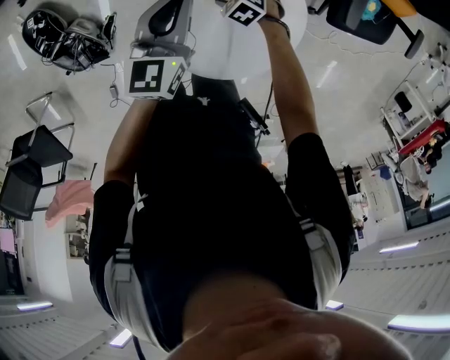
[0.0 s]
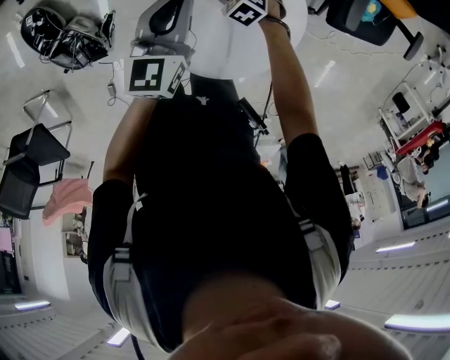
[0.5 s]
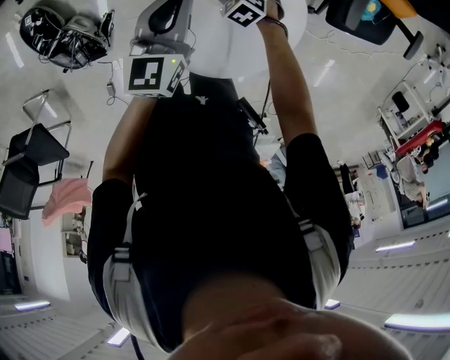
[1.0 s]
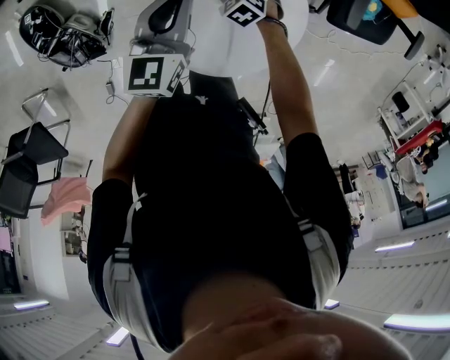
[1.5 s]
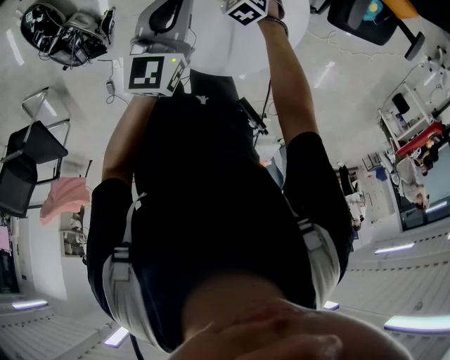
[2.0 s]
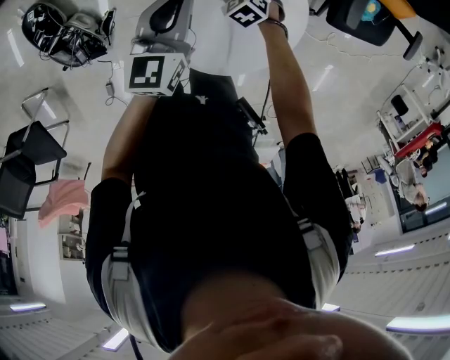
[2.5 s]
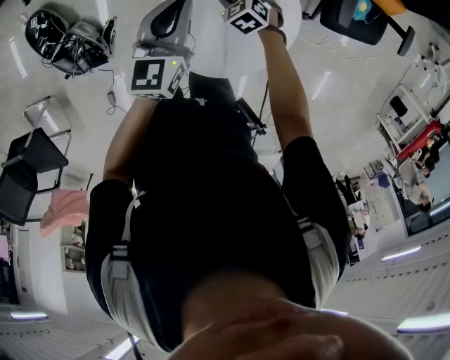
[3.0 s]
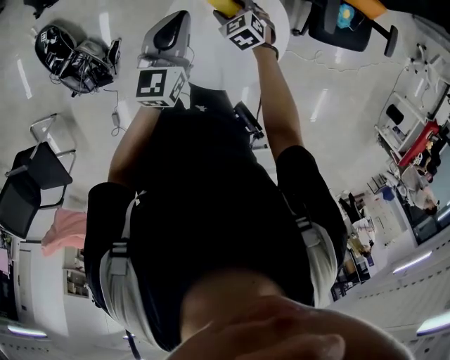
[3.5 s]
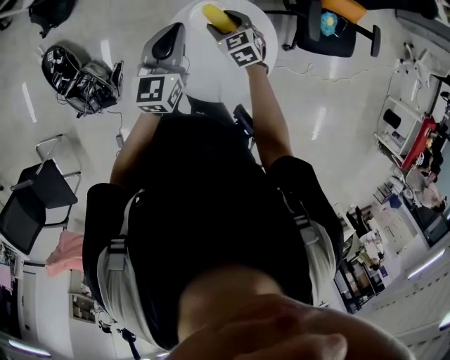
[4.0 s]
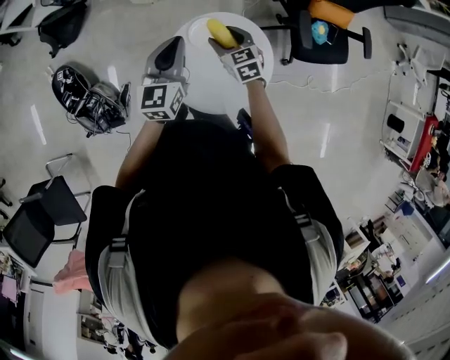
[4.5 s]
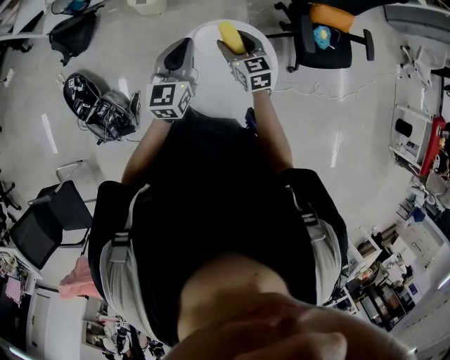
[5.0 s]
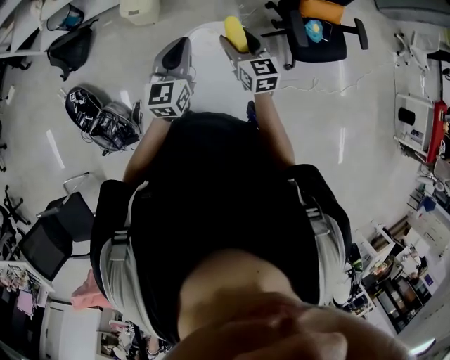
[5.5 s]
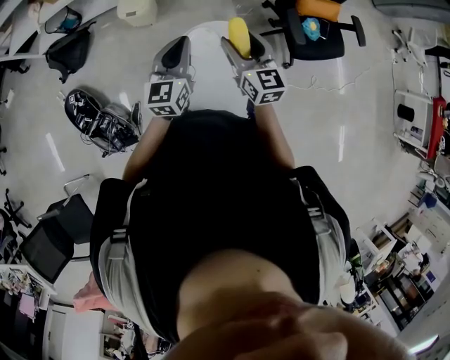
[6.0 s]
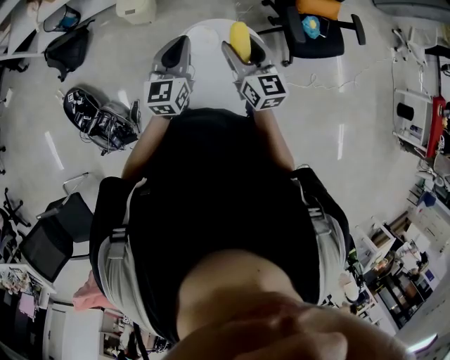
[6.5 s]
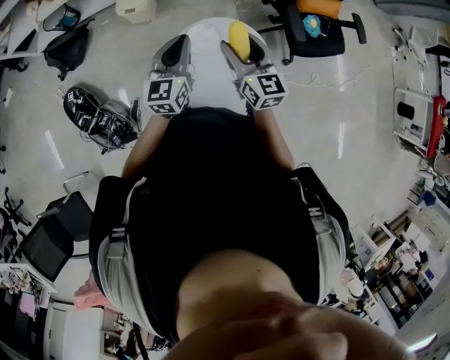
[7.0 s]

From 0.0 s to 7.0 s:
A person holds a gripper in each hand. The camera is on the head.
From 0.0 s to 2.0 s: The grippers move only a little.
From 2.0 s to 3.5 s: The right gripper moves upward, approximately 10 cm. The left gripper moves upward, roughly 5 cm.
From 3.5 s to 5.0 s: The right gripper goes roughly 20 cm upward, and swivels about 40 degrees. The left gripper goes approximately 10 cm upward.
From 5.0 s to 7.0 s: The right gripper shifts approximately 10 cm upward, and turns by approximately 20 degrees.

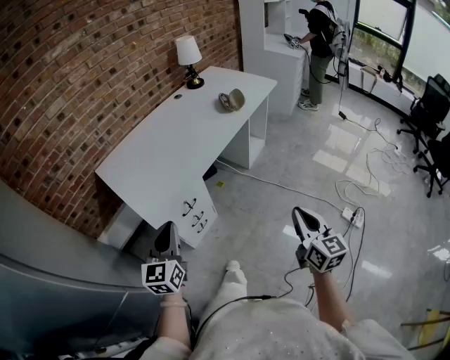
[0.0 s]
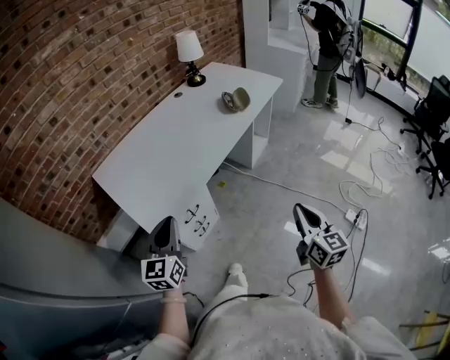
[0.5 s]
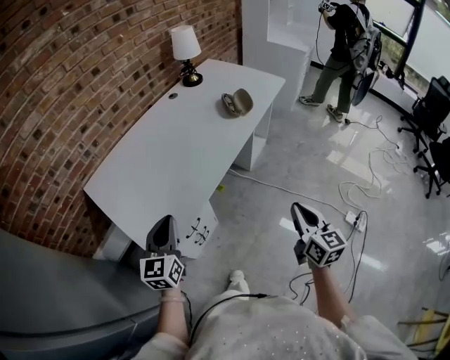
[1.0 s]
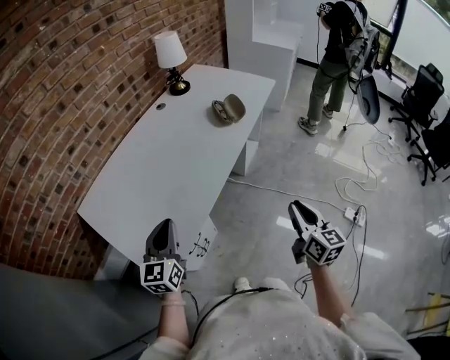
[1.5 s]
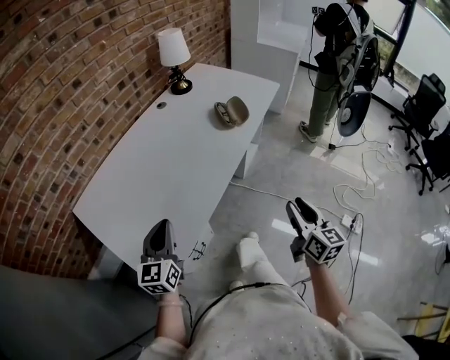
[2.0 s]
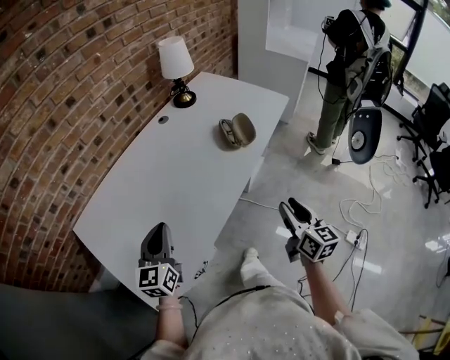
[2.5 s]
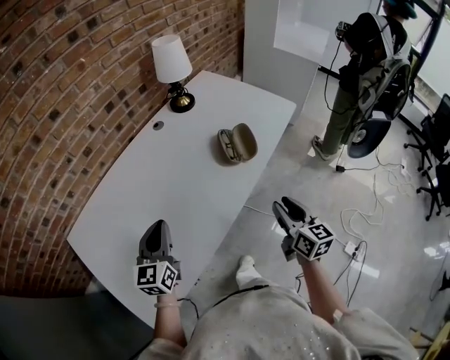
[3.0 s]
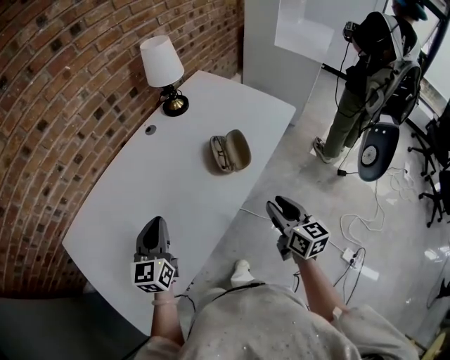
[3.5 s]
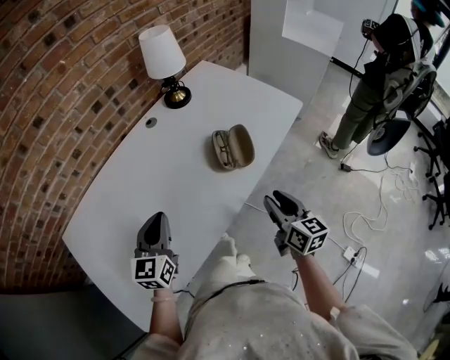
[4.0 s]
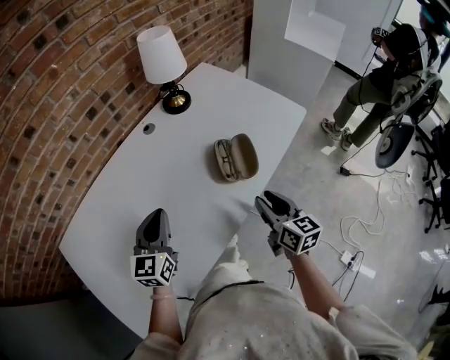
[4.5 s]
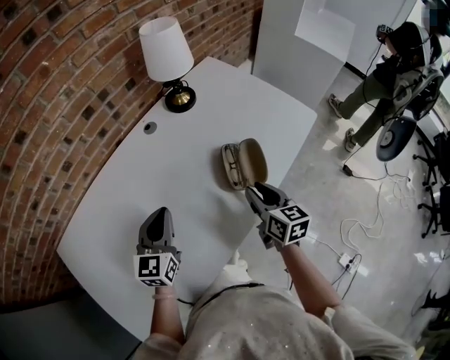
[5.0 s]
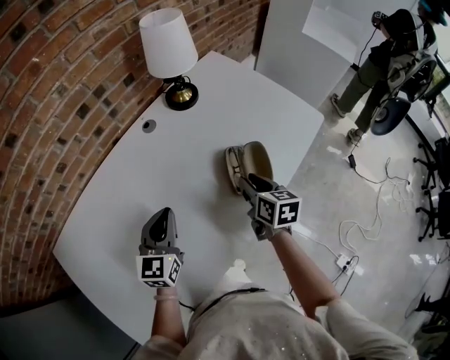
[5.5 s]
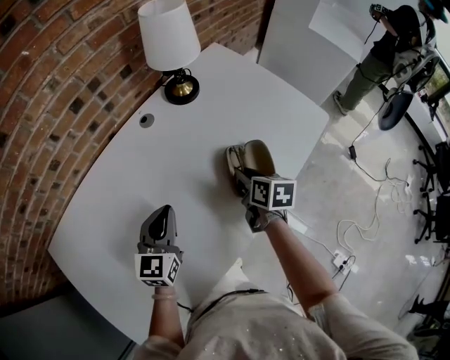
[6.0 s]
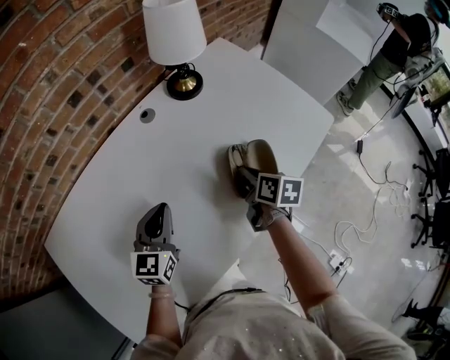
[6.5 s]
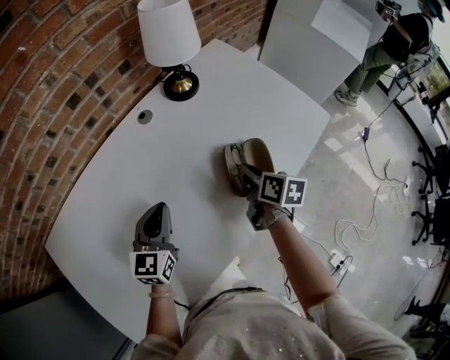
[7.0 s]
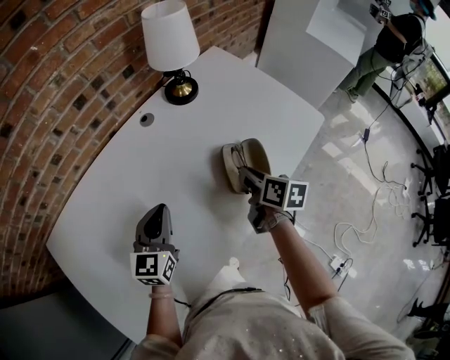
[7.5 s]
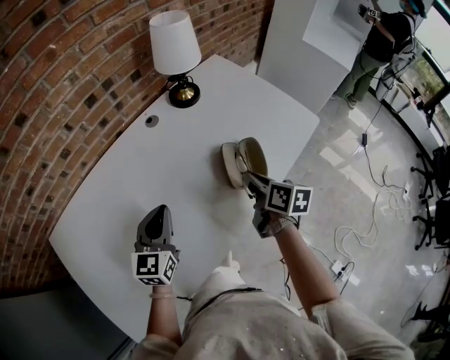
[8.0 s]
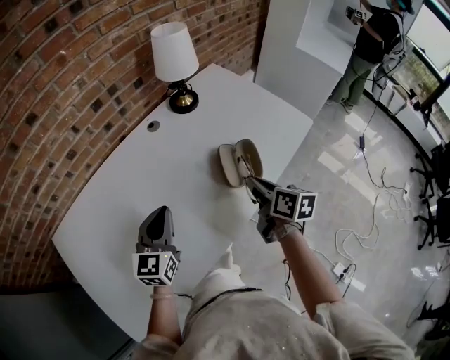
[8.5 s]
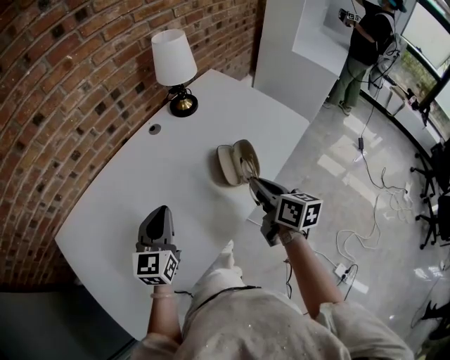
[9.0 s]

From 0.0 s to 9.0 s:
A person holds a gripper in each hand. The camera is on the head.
From 0.0 s to 2.0 s: The grippers both shift forward by about 25 cm. The right gripper opens its fingers.
From 2.0 s to 4.5 s: The two grippers go some 30 cm forward. The right gripper turns by some 20 degrees.
From 4.5 s to 7.0 s: The left gripper moves forward and downward, approximately 10 cm; the right gripper travels forward and downward by about 20 cm, changes its angle by roughly 30 degrees, and closes up.
From 7.0 s to 9.0 s: The left gripper travels backward and upward by roughly 10 cm; the right gripper goes approximately 15 cm backward and upward.

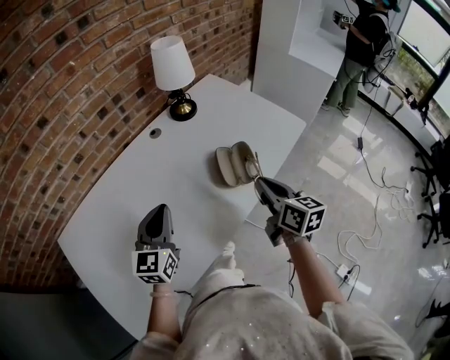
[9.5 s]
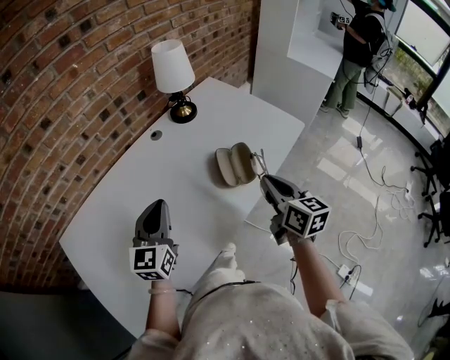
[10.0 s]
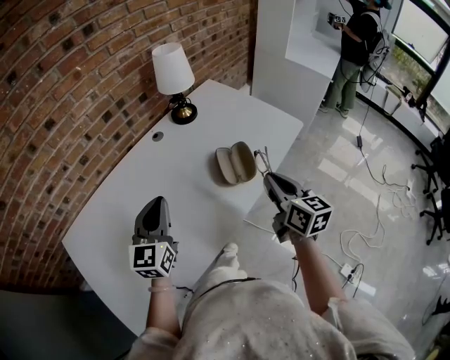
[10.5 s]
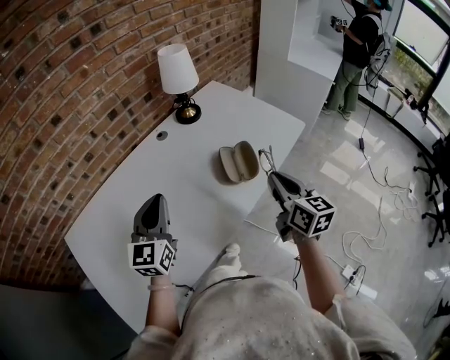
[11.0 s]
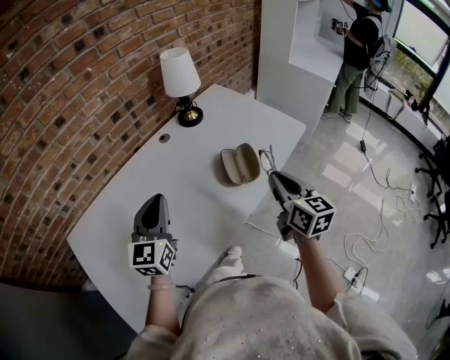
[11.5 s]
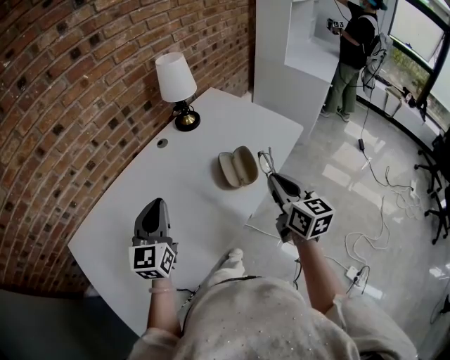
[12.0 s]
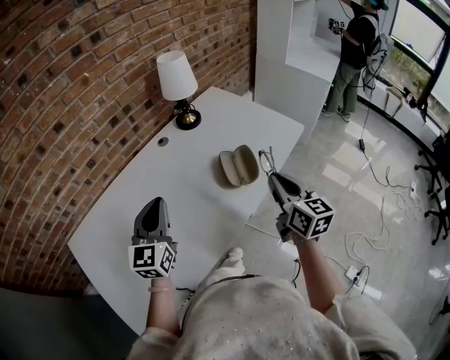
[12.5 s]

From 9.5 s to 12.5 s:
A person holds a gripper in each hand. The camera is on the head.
From 9.5 s to 11.0 s: The right gripper ends up roughly 5 cm from where it was. Meanwhile the left gripper ends up some 5 cm from where it was.
From 11.0 s to 12.5 s: Both grippers stay about where they are.

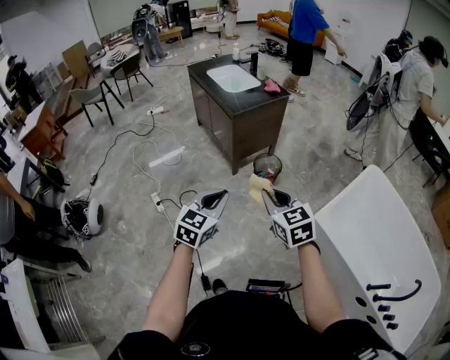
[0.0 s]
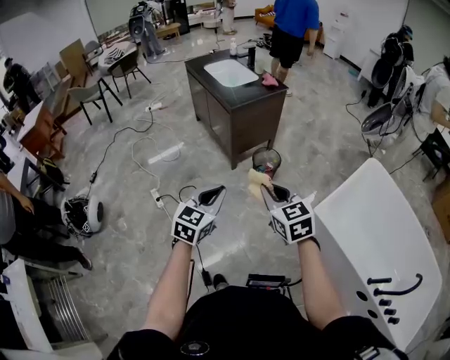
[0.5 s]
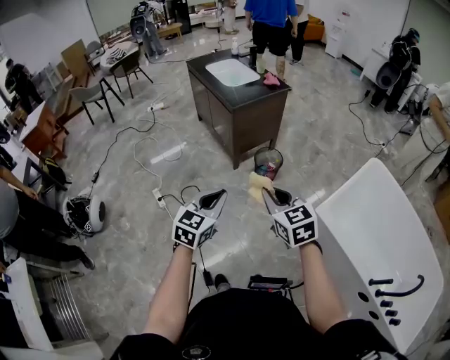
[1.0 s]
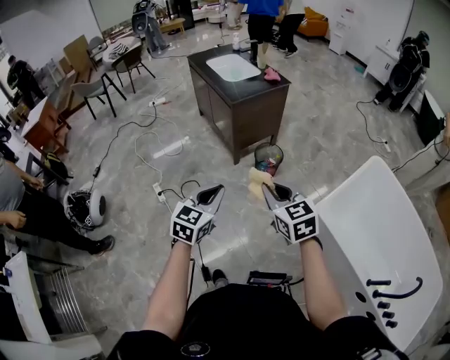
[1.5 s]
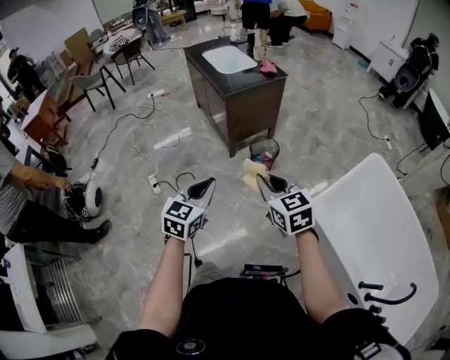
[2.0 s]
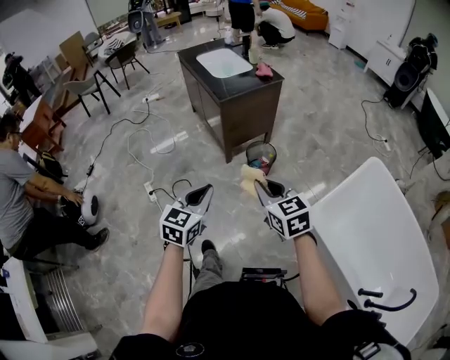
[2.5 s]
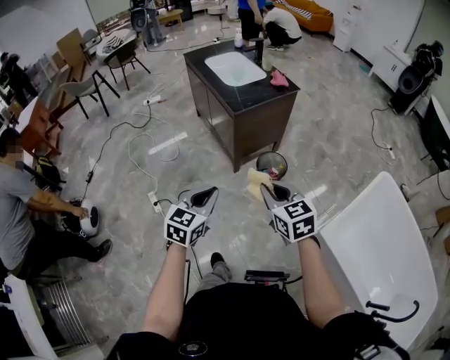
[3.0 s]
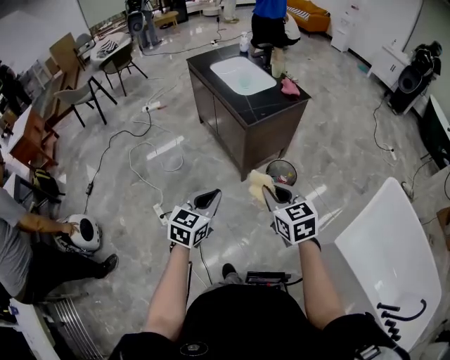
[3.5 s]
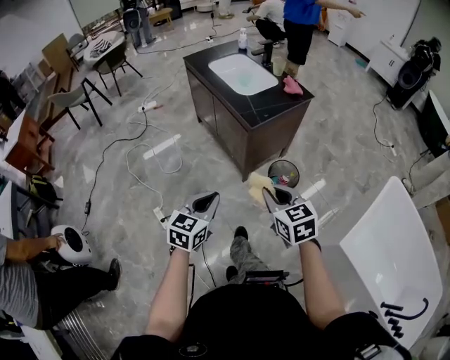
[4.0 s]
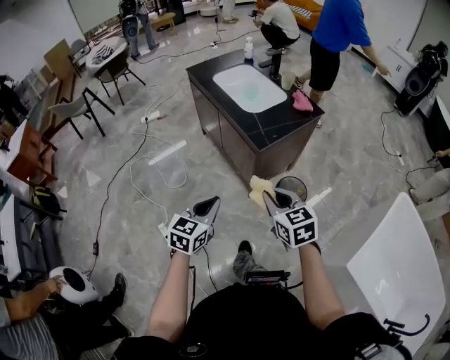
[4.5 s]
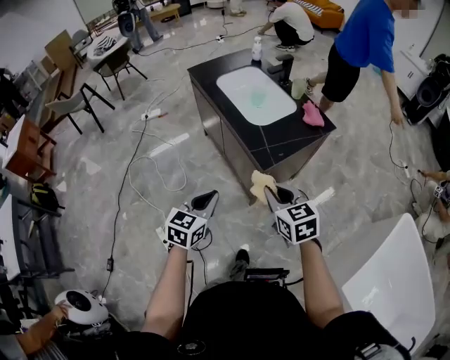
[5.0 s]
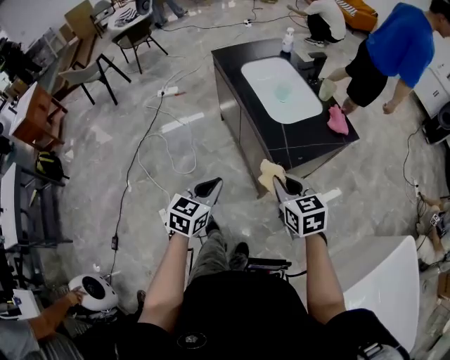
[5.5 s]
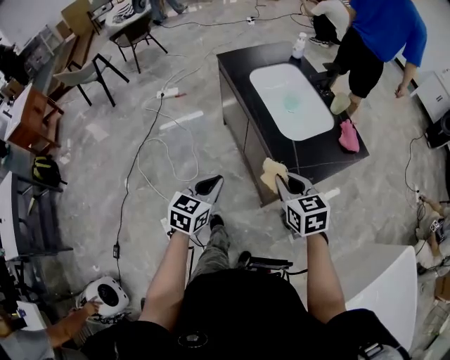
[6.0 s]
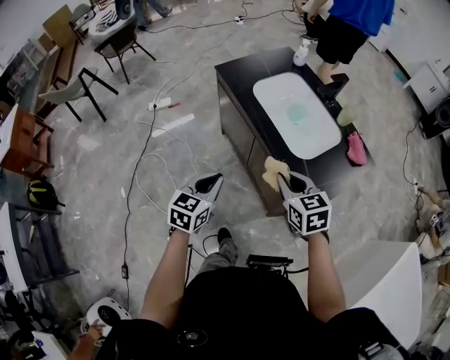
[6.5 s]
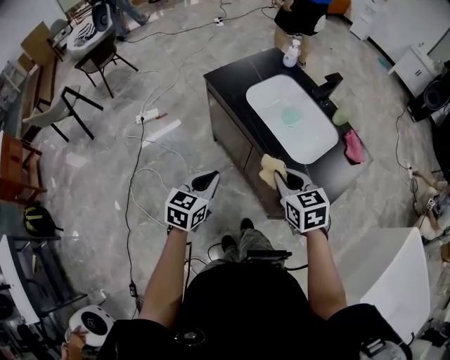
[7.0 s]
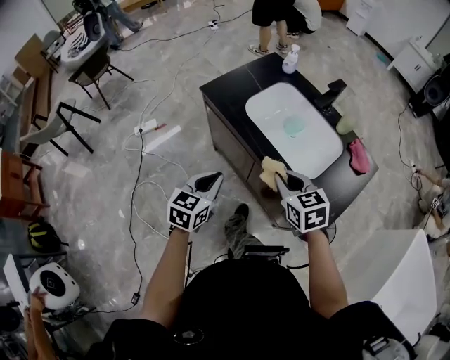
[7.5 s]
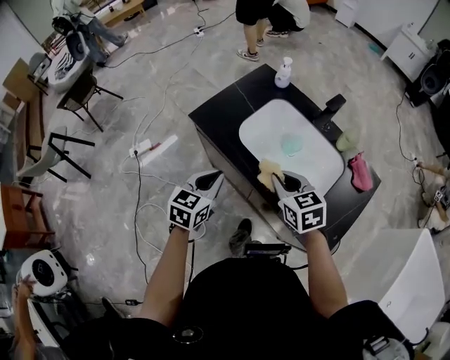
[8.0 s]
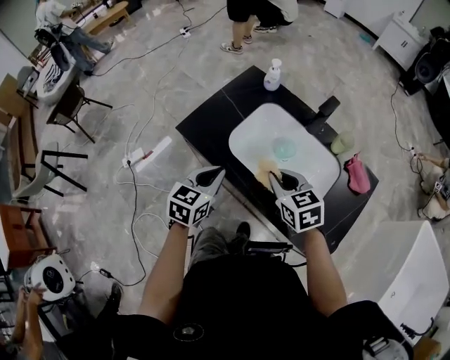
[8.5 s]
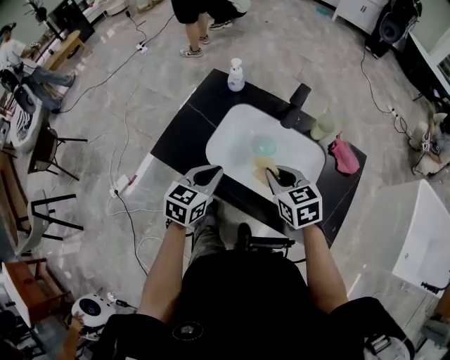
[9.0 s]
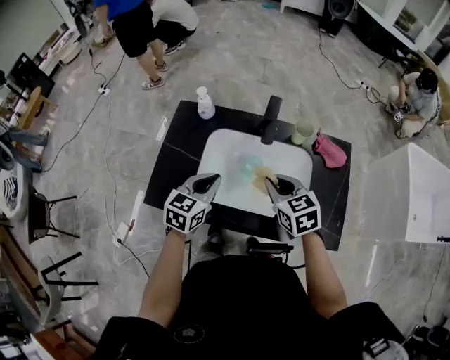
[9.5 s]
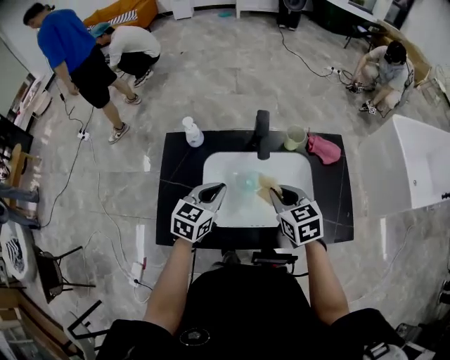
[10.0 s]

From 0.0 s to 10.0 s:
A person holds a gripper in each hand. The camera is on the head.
From 0.0 s to 2.0 s: The right gripper heads to the right, covering some 5 cm.
From 2.0 s to 4.0 s: The grippers both shift forward and to the left by roughly 30 cm.
From 4.0 s to 6.0 s: The grippers both shift forward by about 35 cm.
From 6.0 s to 8.0 s: Both grippers travel together forward, approximately 35 cm.
From 8.0 s to 10.0 s: The left gripper changes place by approximately 30 cm, and rotates approximately 50 degrees. The right gripper changes place by some 15 cm, and turns by about 50 degrees.
